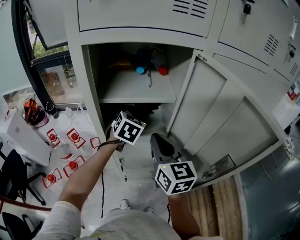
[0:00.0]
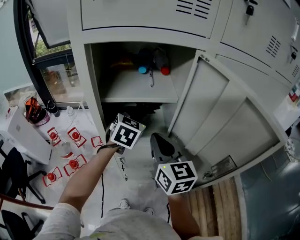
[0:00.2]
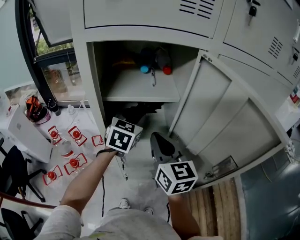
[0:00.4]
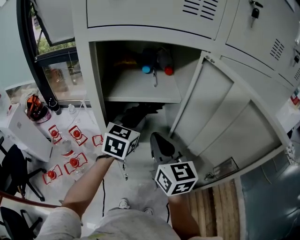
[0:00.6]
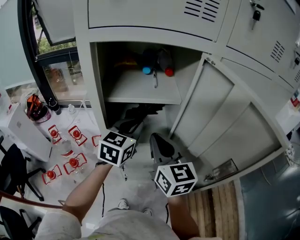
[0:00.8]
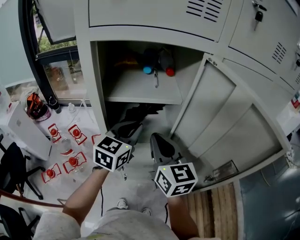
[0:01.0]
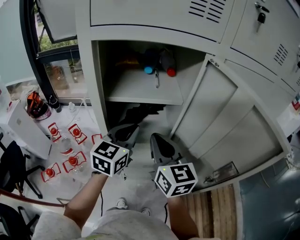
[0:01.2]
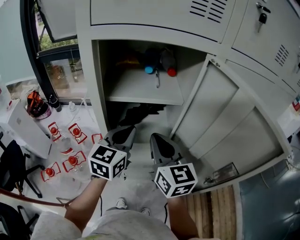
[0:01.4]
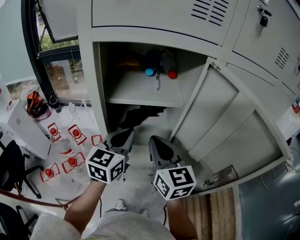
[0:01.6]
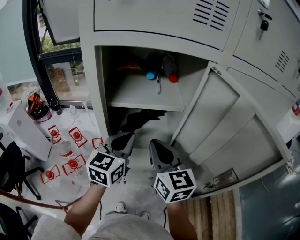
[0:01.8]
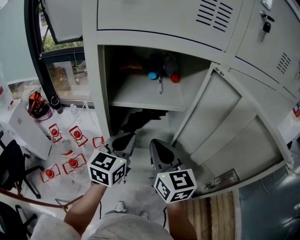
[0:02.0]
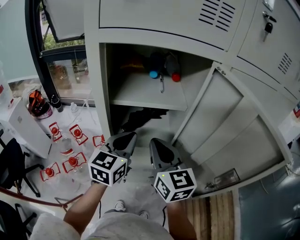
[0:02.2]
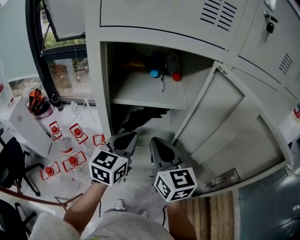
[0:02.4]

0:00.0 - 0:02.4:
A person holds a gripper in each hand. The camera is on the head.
0:00.0 - 0:01.2: The left gripper heads backward, covering some 10 cm, changes its angle by some 30 degrees, and closes up.
0:01.2 - 0:02.4: The grippers move only a little.

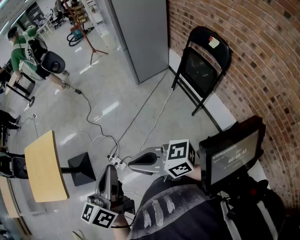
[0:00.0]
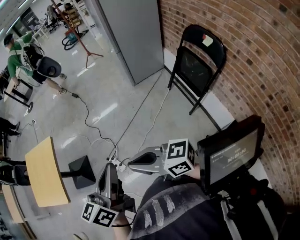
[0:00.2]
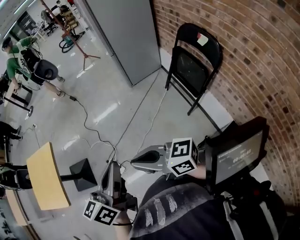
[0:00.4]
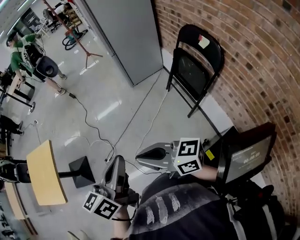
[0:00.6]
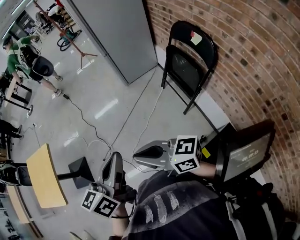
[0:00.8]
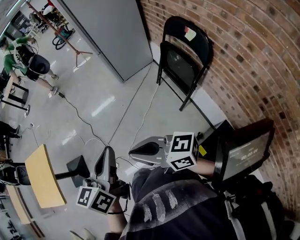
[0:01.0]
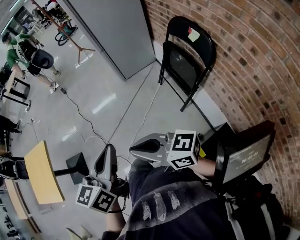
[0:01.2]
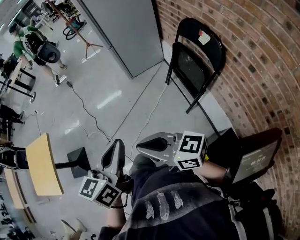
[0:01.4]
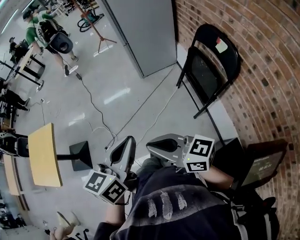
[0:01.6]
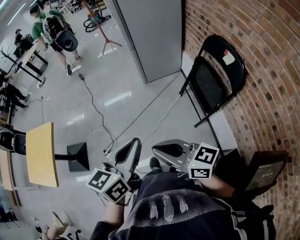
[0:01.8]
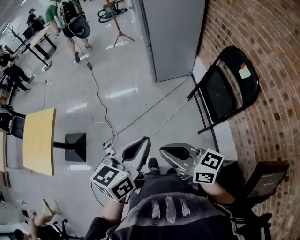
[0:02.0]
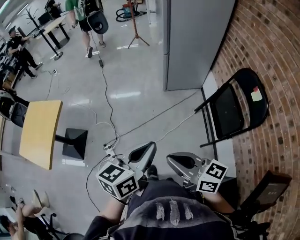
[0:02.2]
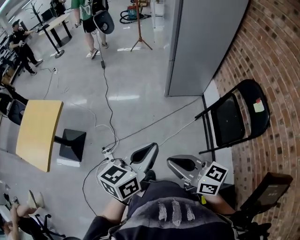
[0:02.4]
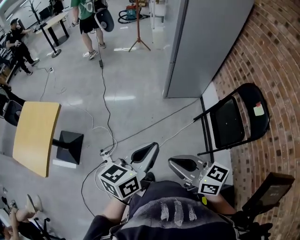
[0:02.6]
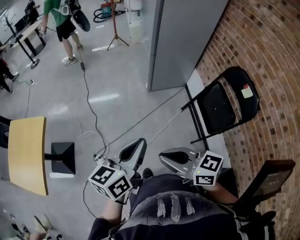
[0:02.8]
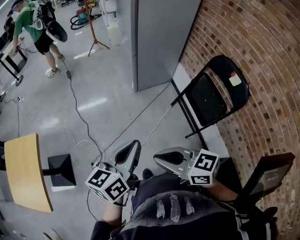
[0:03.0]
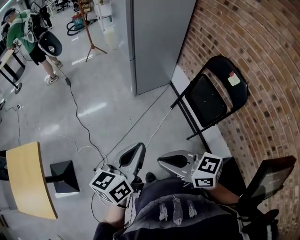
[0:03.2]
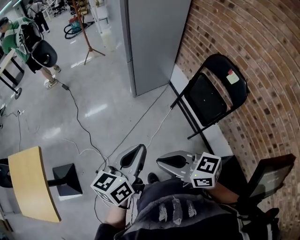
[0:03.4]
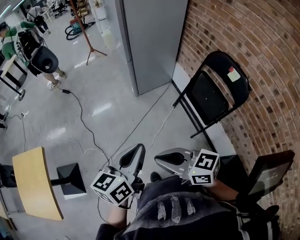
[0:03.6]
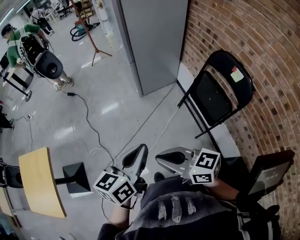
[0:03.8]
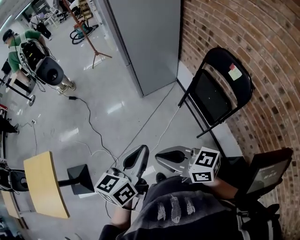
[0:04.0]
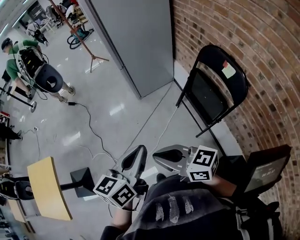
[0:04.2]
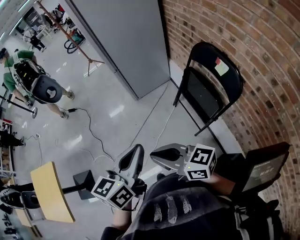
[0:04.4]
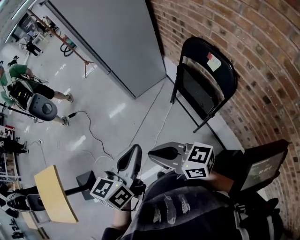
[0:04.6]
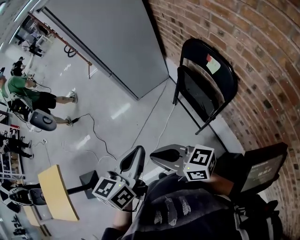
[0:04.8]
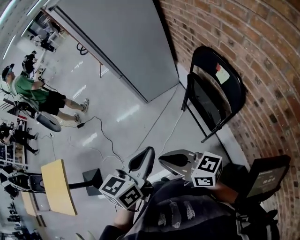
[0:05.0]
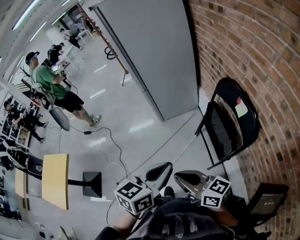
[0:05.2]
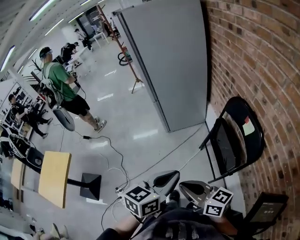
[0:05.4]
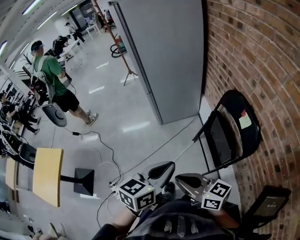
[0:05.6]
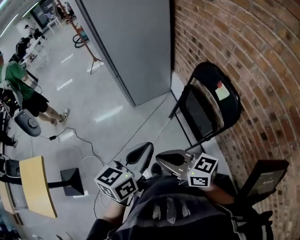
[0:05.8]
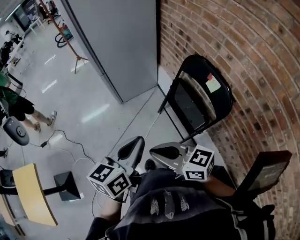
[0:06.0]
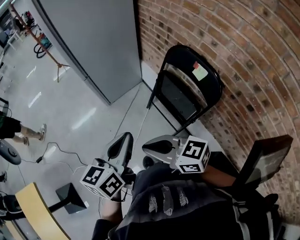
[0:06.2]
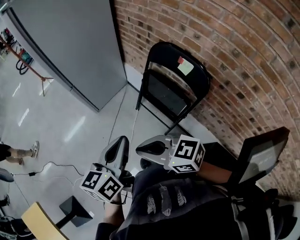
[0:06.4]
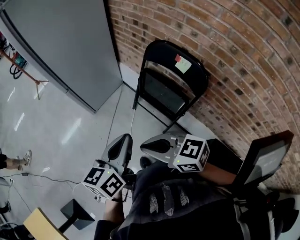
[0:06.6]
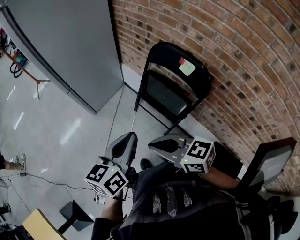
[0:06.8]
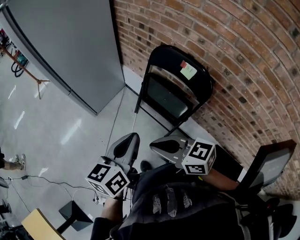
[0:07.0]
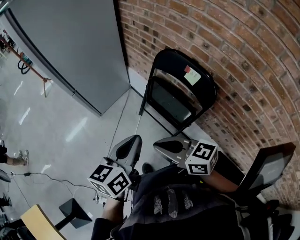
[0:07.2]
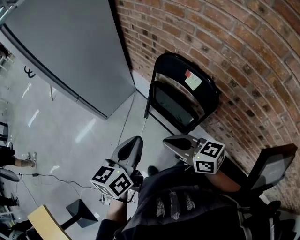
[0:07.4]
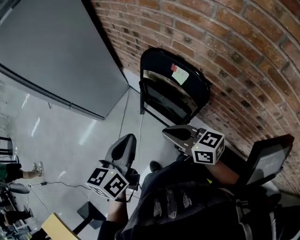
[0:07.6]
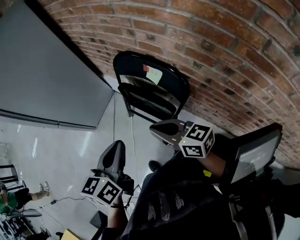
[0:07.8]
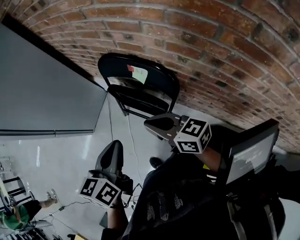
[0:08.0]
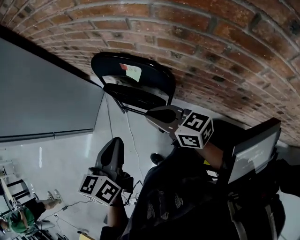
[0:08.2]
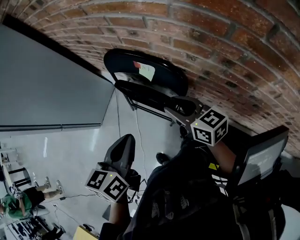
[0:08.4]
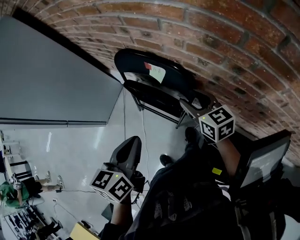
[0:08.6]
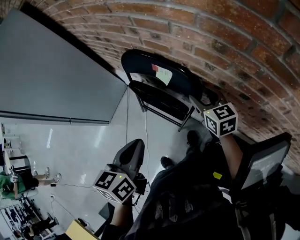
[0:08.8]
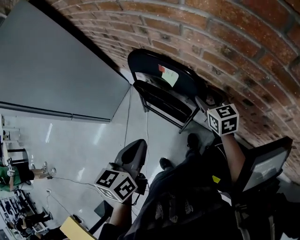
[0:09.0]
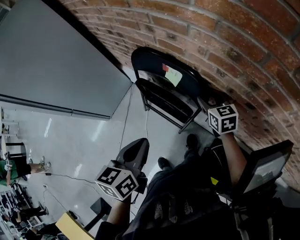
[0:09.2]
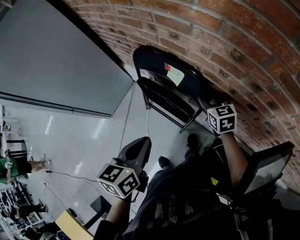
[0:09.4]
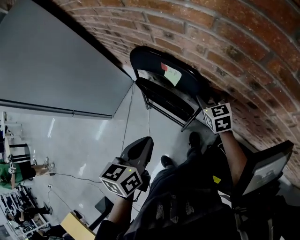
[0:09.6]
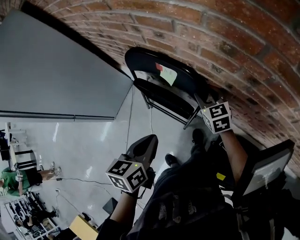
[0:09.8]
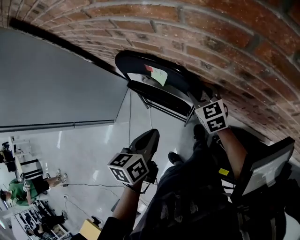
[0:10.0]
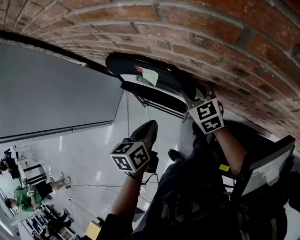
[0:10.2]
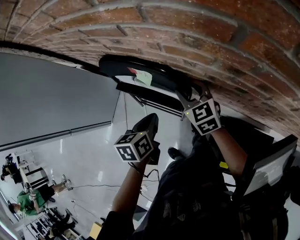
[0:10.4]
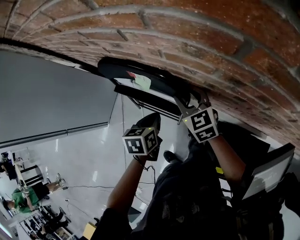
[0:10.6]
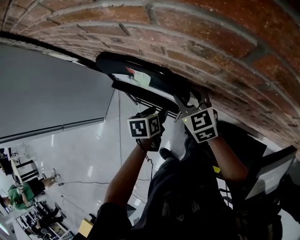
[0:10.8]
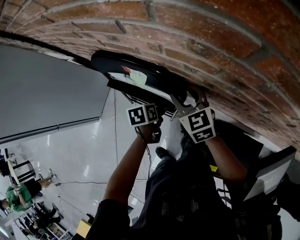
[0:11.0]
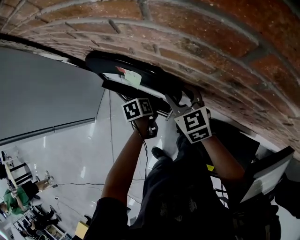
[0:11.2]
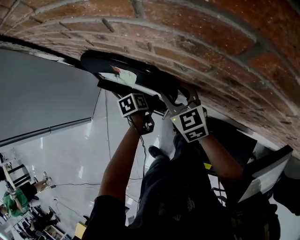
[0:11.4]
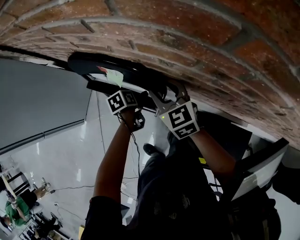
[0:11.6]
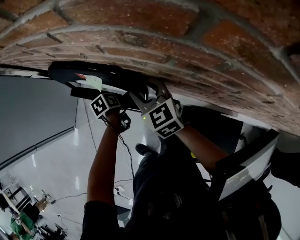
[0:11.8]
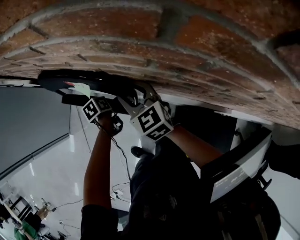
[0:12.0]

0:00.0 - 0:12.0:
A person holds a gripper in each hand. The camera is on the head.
0:00.0 - 0:01.6: Both grippers travel together to the right, roughly 25 cm.
0:01.6 - 0:03.0: Both grippers travel together forward and to the left, approximately 20 cm.
0:03.0 - 0:04.4: Both grippers travel together to the right, approximately 20 cm.
0:04.4 - 0:06.0: The two grippers go approximately 10 cm to the right and forward.
0:06.0 - 0:07.6: The right gripper heads to the right and forward, covering about 20 cm, and turns by roughly 30 degrees. The left gripper moves forward and to the right, approximately 15 cm.
0:07.6 - 0:09.0: The left gripper ends up roughly 10 cm from where it was, while the right gripper changes place by approximately 30 cm, turns by about 40 degrees, and opens up.
0:09.0 - 0:10.4: The left gripper heads downward, forward and to the right, covering about 20 cm.
0:10.4 - 0:12.0: The left gripper travels downward by approximately 20 cm, rotates about 30 degrees, and opens its fingers.

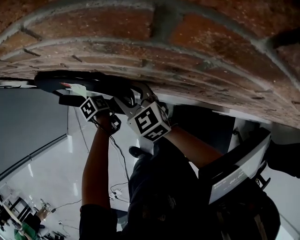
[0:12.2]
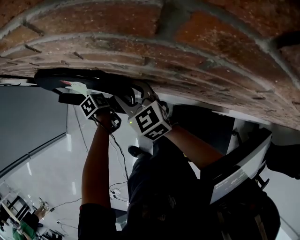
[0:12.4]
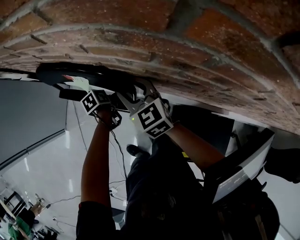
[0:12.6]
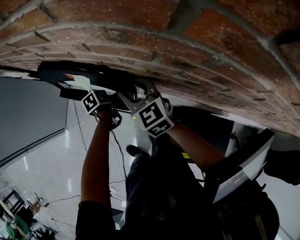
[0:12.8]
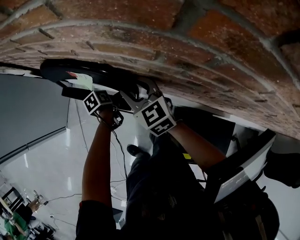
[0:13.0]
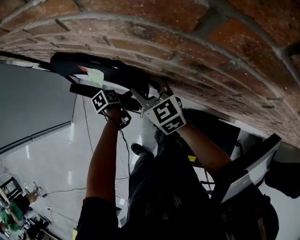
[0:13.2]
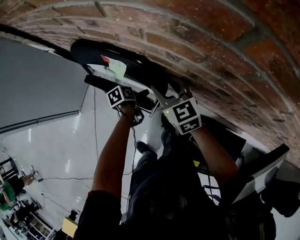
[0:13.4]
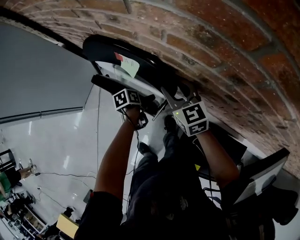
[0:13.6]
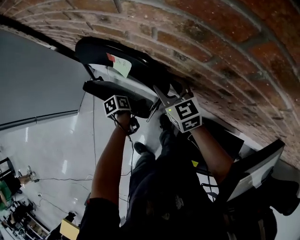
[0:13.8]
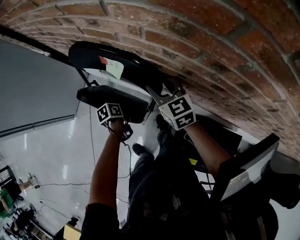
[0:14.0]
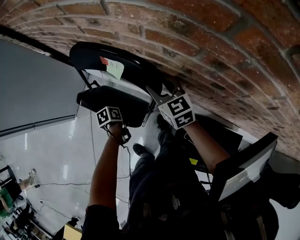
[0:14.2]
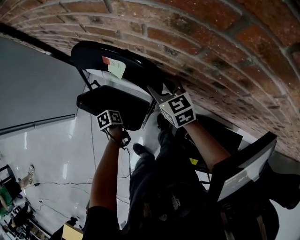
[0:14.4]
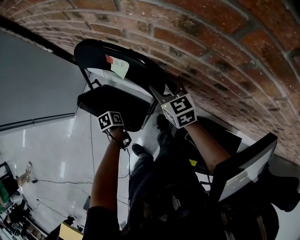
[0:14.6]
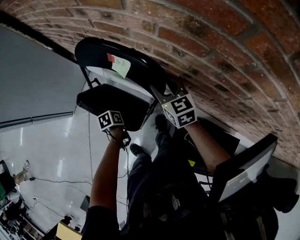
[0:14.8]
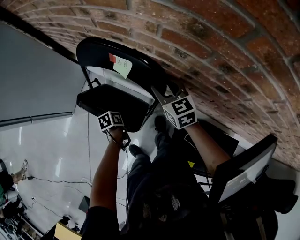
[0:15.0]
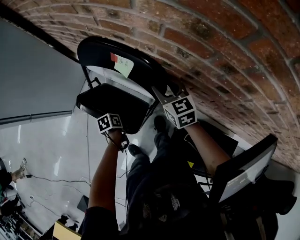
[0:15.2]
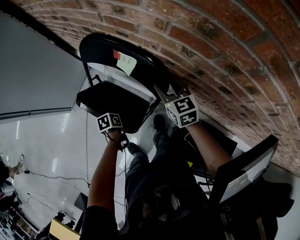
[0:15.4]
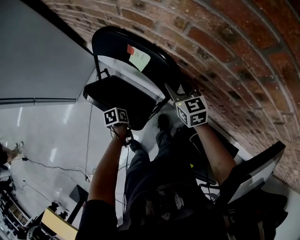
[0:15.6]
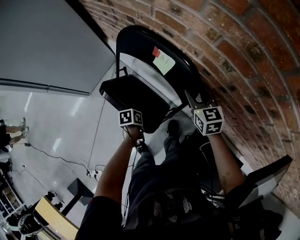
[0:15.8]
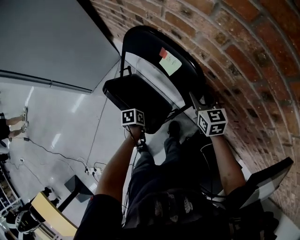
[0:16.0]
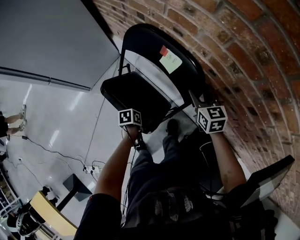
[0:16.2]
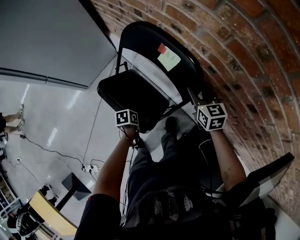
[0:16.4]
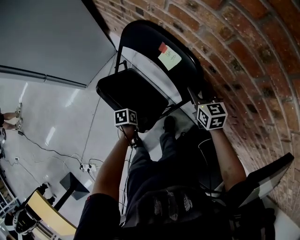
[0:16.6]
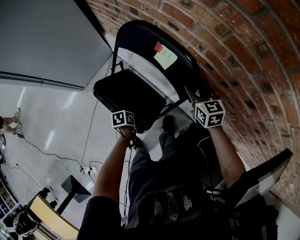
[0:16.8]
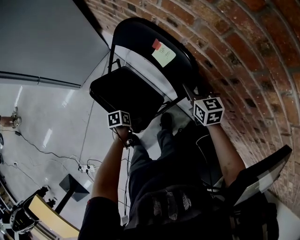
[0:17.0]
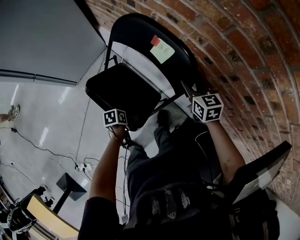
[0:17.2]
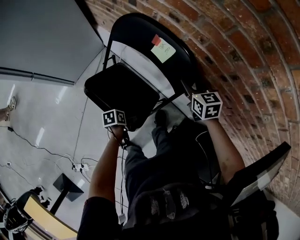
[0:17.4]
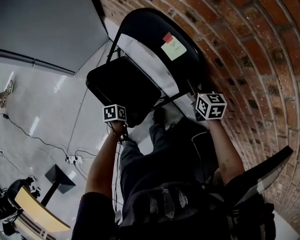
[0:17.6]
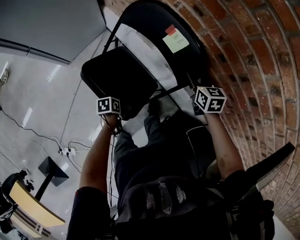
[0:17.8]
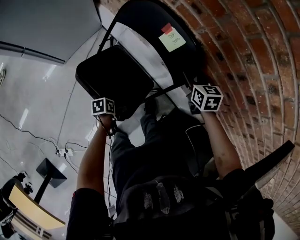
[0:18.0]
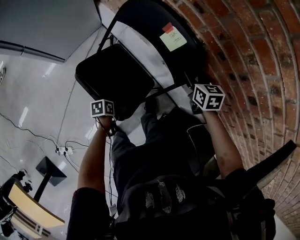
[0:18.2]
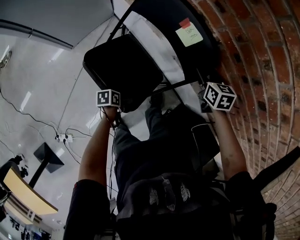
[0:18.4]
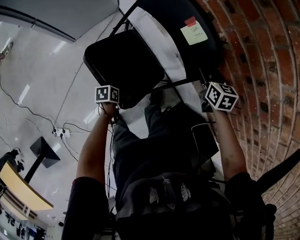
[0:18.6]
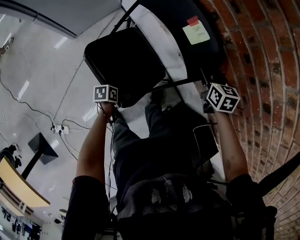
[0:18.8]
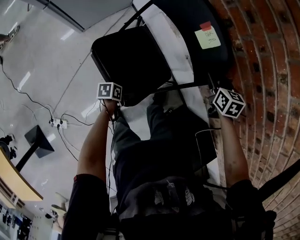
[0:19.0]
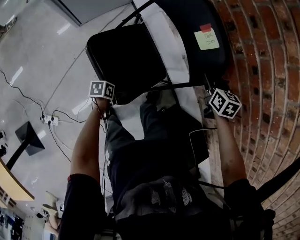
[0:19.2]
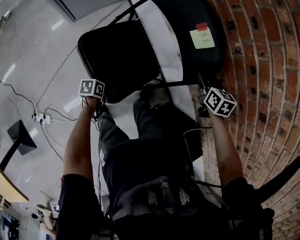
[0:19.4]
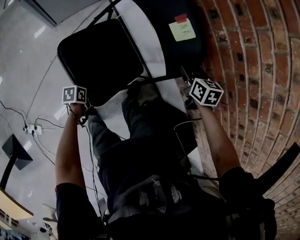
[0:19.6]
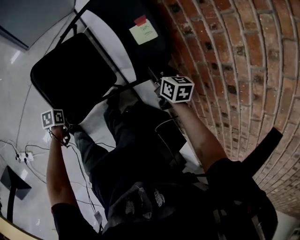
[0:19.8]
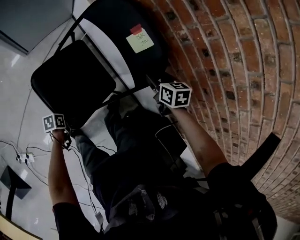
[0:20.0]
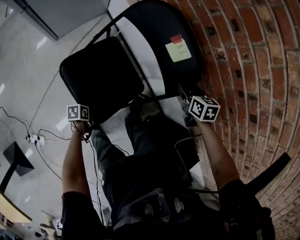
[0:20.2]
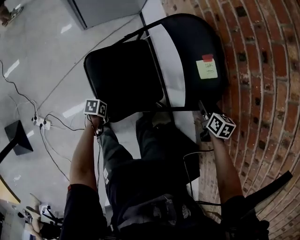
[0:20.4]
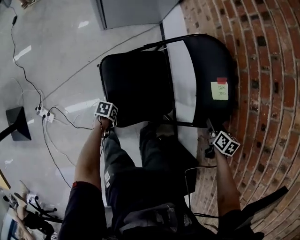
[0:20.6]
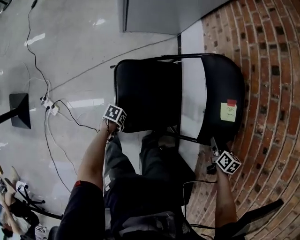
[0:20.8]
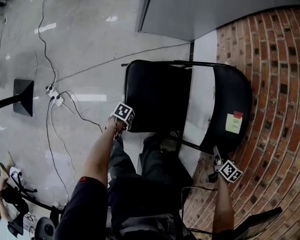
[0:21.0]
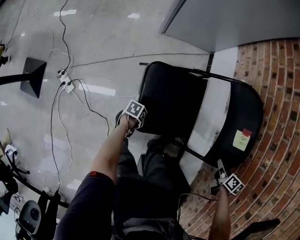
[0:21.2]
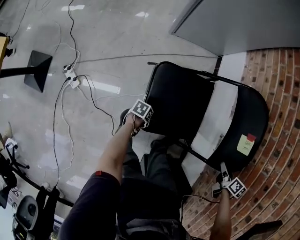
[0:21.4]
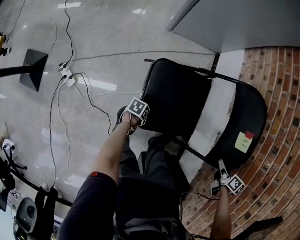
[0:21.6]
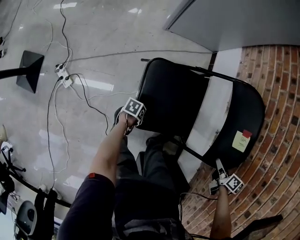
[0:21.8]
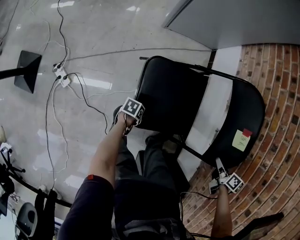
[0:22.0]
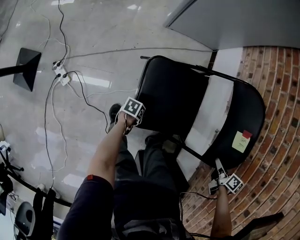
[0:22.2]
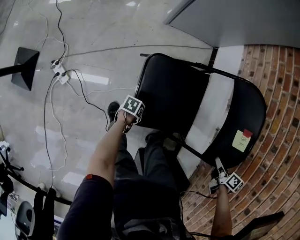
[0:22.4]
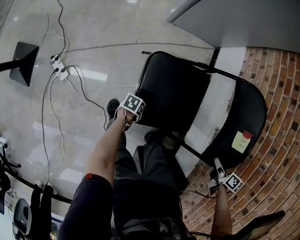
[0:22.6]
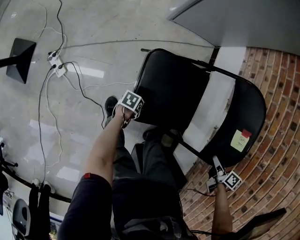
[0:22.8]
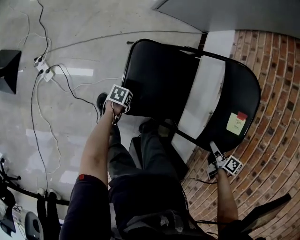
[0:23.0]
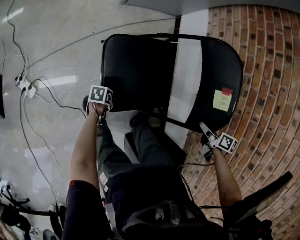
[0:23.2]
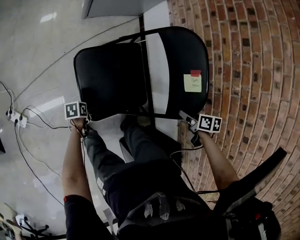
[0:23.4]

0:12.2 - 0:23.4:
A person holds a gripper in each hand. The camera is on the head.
0:12.2 - 0:13.8: The left gripper heads backward, covering approximately 5 cm.
0:13.8 - 0:15.4: The left gripper travels backward by roughly 10 cm.
0:15.4 - 0:17.0: The left gripper heads backward, covering roughly 10 cm.
0:17.0 - 0:18.6: The left gripper travels backward by approximately 10 cm.
0:18.6 - 0:20.2: The left gripper heads backward and downward, covering some 10 cm. The right gripper ends up roughly 5 cm from where it was.
0:20.2 - 0:21.8: The right gripper shifts by some 10 cm, and changes its angle by roughly 30 degrees. Meanwhile the left gripper changes place by approximately 10 cm.
0:21.8 - 0:23.4: The two grippers go some 5 cm to the left.
